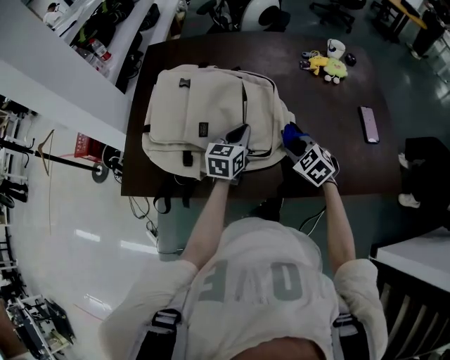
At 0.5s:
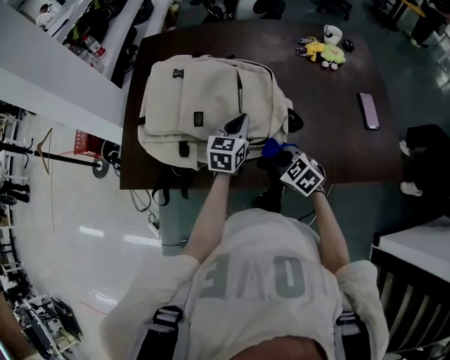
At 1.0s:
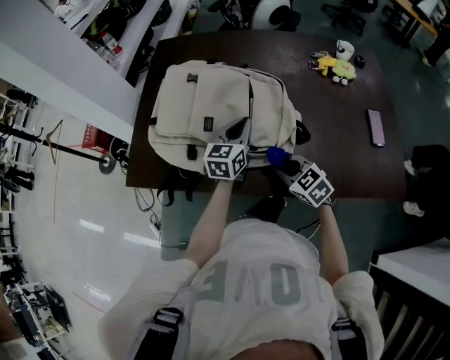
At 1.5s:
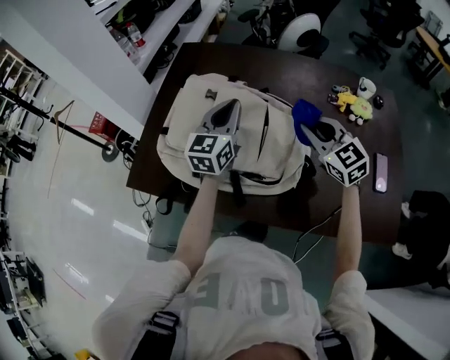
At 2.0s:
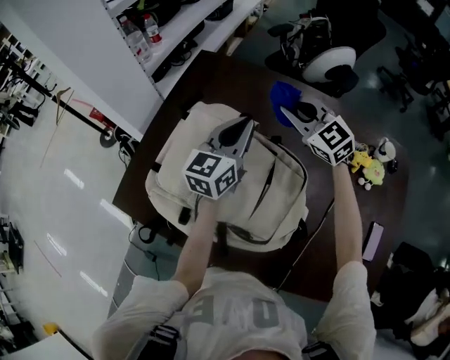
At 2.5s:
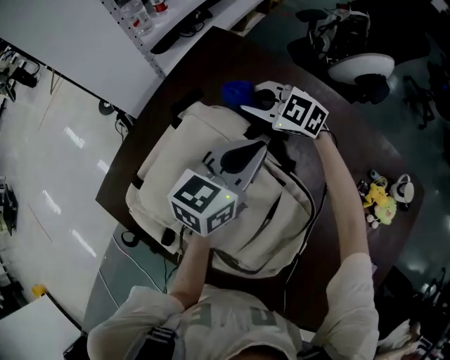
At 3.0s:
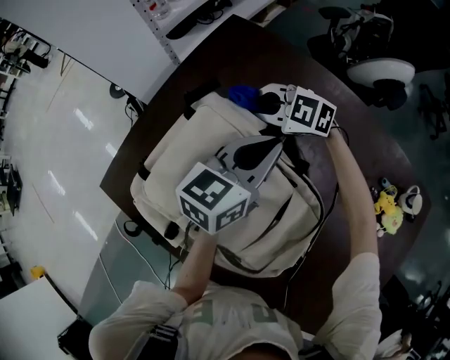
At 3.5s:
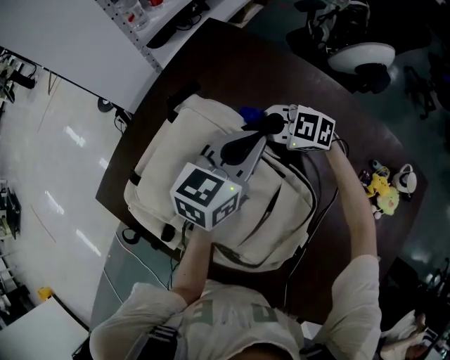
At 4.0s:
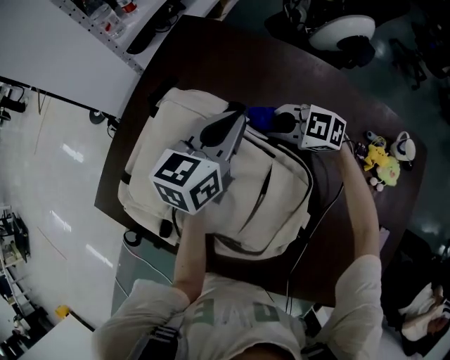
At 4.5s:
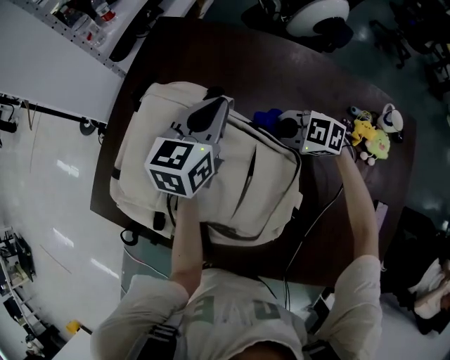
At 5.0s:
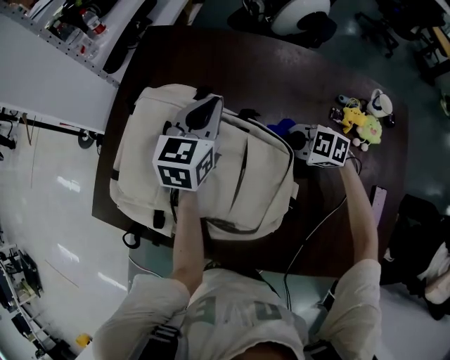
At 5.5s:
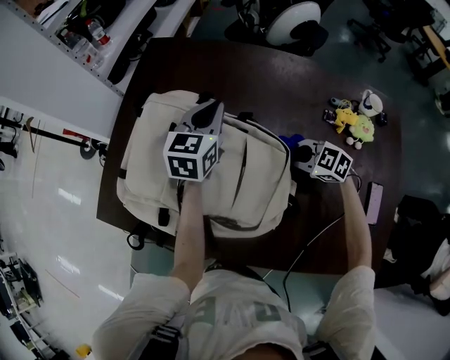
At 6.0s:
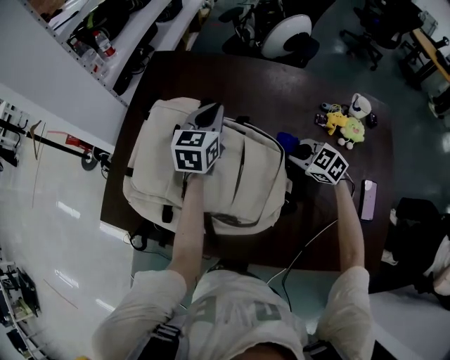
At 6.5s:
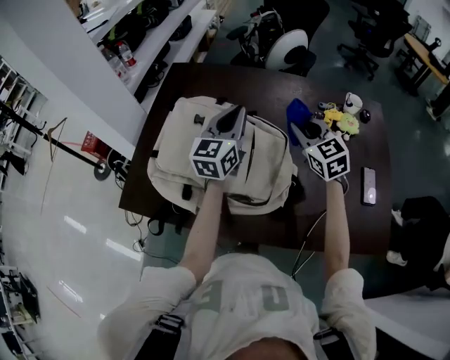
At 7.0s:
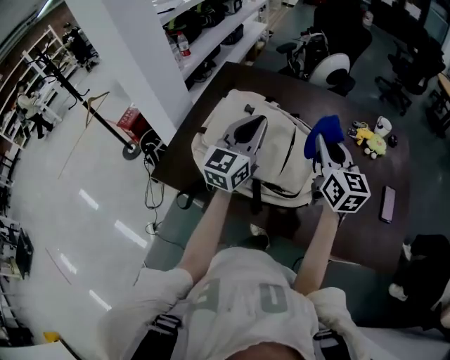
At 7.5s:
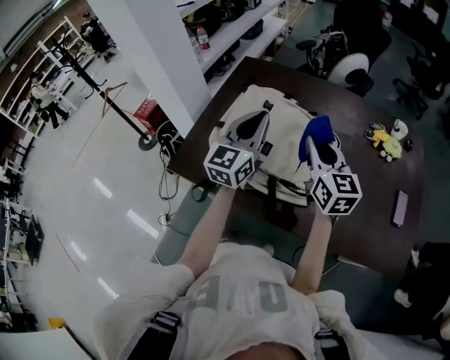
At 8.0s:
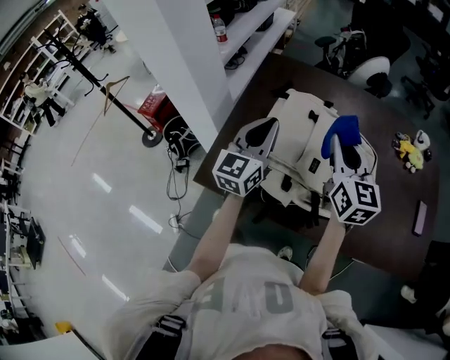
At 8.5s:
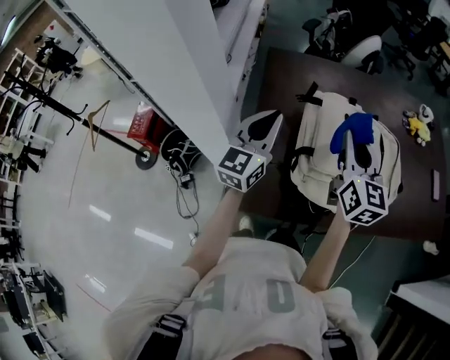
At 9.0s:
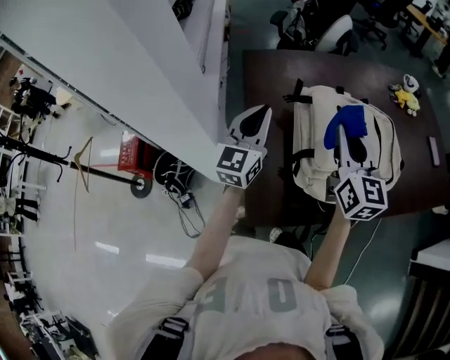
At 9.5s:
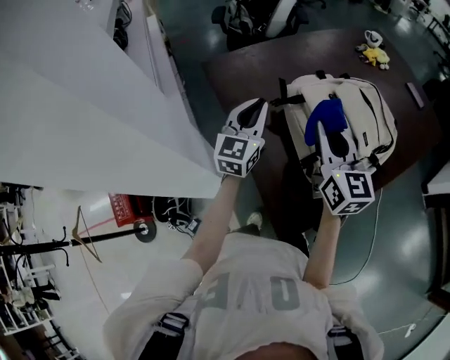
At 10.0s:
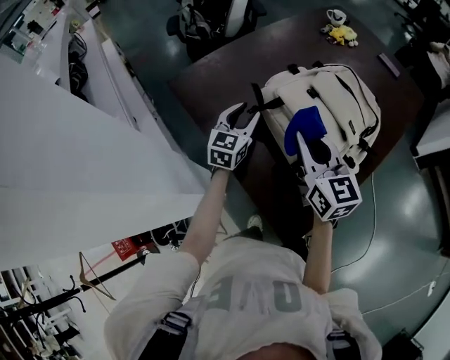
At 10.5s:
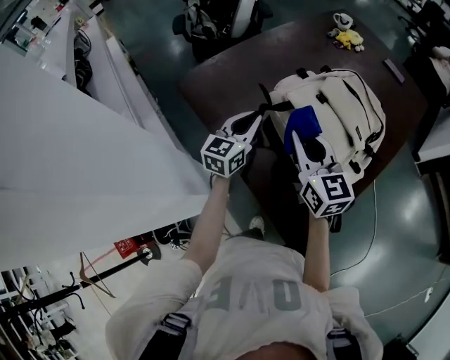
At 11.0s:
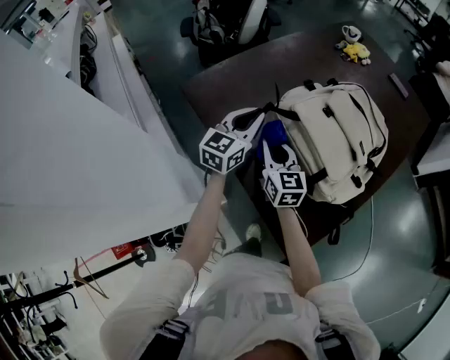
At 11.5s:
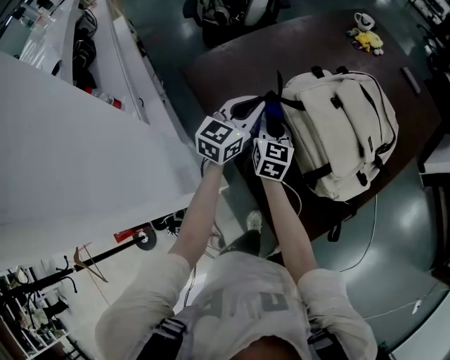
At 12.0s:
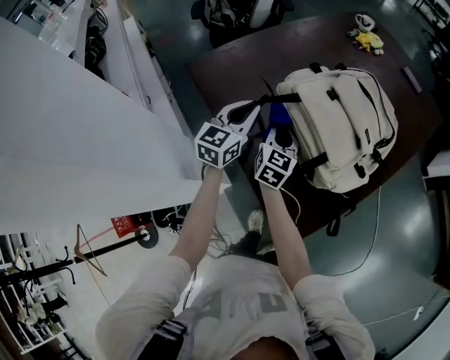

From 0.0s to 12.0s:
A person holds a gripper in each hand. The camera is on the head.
From 0.0s to 2.0s: The right gripper shifts roughly 40 cm forward and upward, and angles its fingers upward, by some 30 degrees; the left gripper moves forward and upward, some 25 cm, and changes its angle by some 30 degrees.
From 2.0s to 4.0s: The right gripper goes roughly 20 cm downward, and swivels some 40 degrees. The left gripper is displaced downward by approximately 5 cm.
From 4.0s to 6.0s: The right gripper moves backward and to the right, about 20 cm, and swivels some 40 degrees.
From 6.0s to 8.0s: The right gripper moves upward and to the left, about 35 cm, and tips its fingers upward by some 40 degrees, while the left gripper travels to the left, backward and upward by some 30 cm, and rotates approximately 20 degrees.
From 8.0s to 10.0s: The right gripper changes place by roughly 25 cm, and turns by some 40 degrees. The left gripper ends up roughly 30 cm from where it was, swivels roughly 60 degrees, and opens up.
From 10.0s to 12.0s: The left gripper closes. Meanwhile the right gripper heads downward and to the left, covering about 15 cm, and changes its angle by roughly 30 degrees.

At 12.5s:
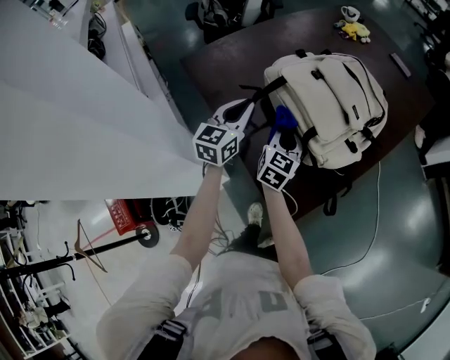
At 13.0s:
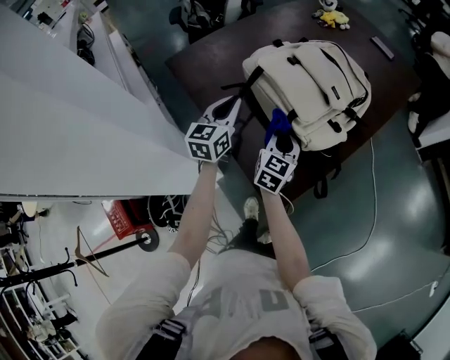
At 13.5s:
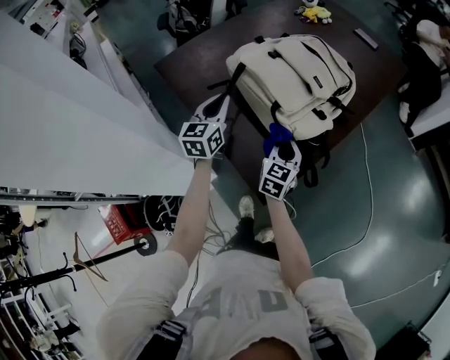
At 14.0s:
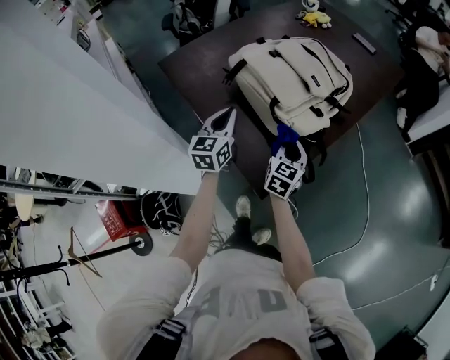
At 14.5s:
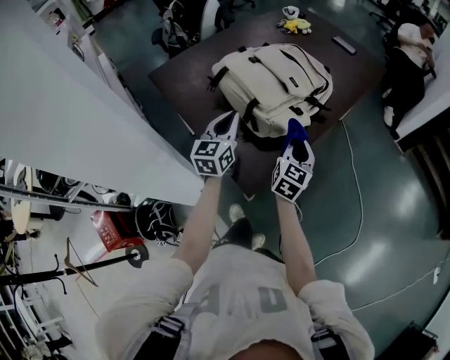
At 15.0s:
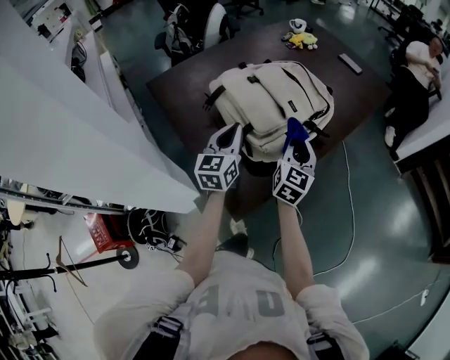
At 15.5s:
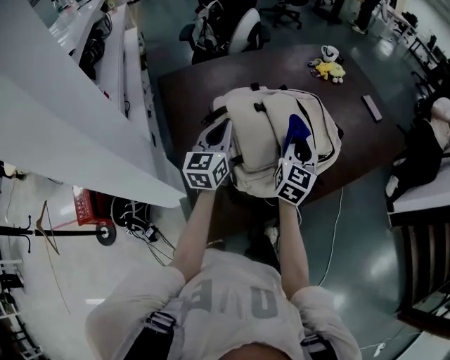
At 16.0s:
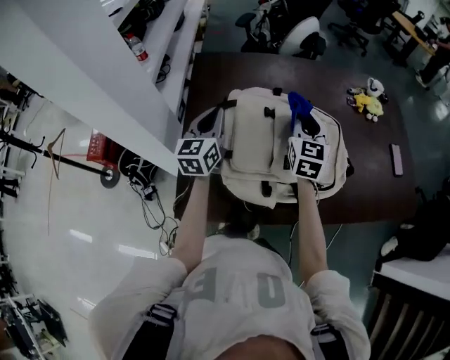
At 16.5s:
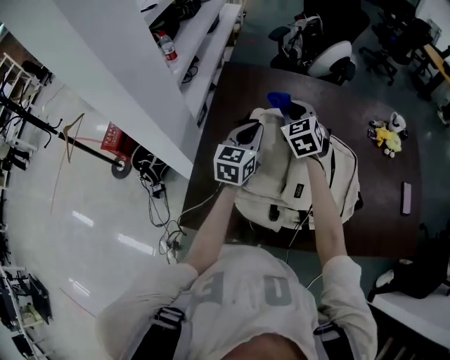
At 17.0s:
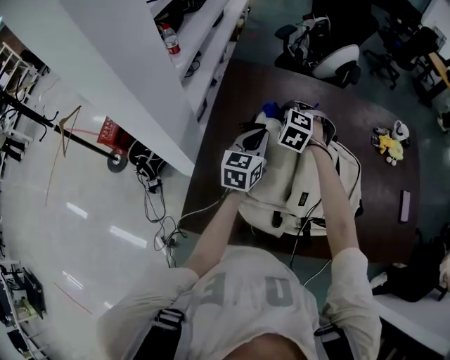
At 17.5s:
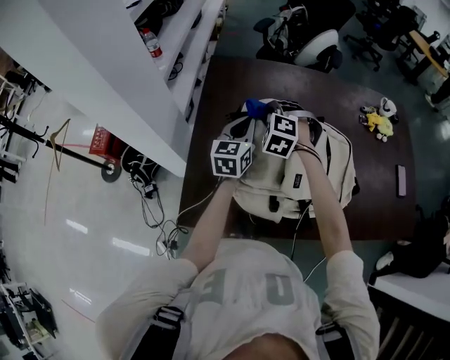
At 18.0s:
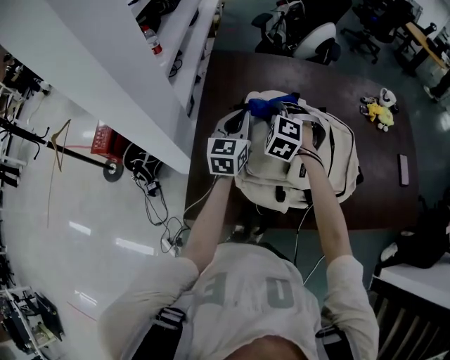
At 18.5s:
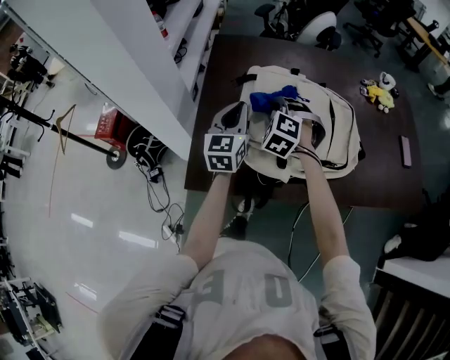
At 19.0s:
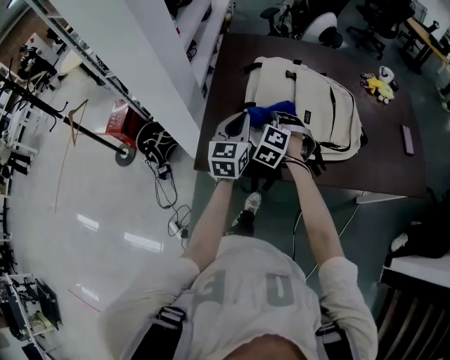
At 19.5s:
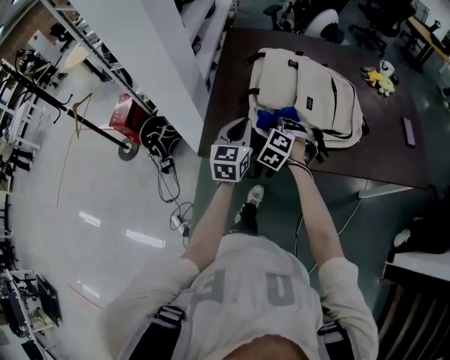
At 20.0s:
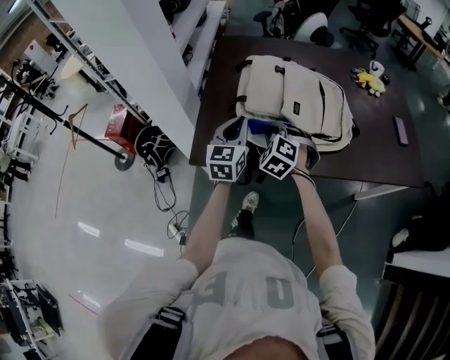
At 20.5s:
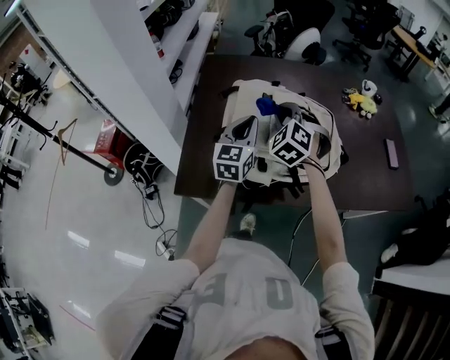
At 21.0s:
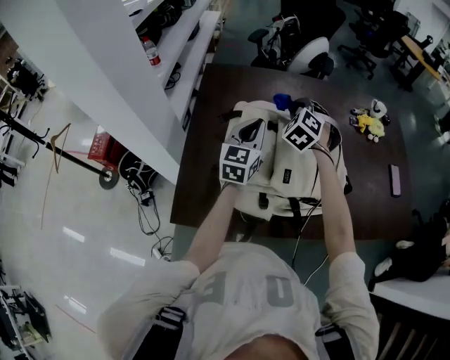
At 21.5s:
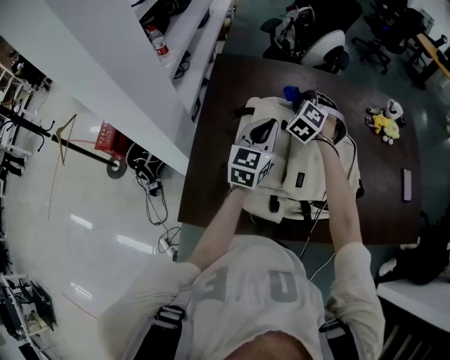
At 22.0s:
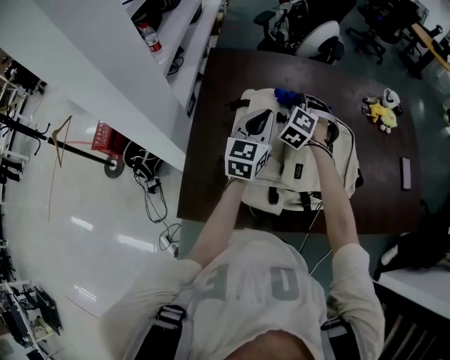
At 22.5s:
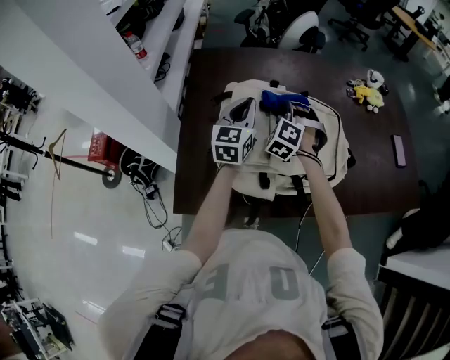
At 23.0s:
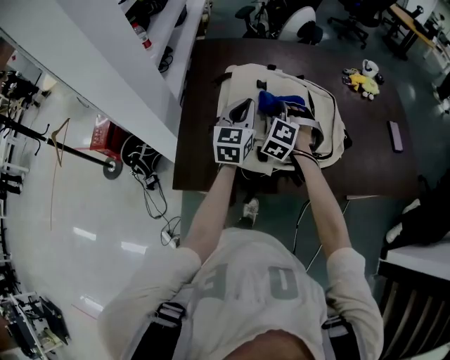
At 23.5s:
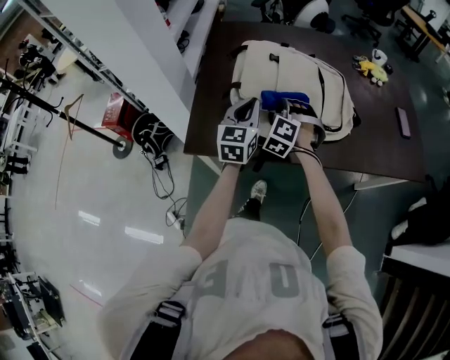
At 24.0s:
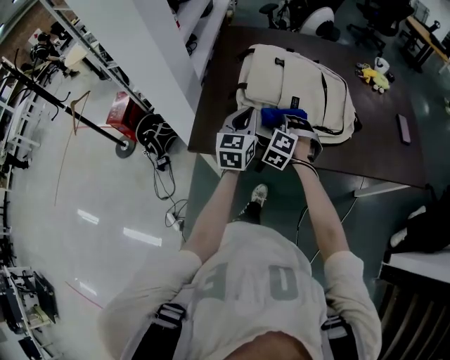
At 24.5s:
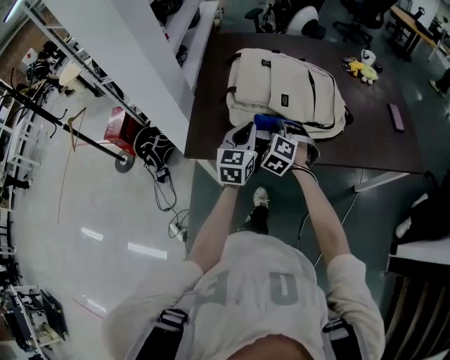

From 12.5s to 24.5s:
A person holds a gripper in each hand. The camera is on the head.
From 12.5s to 14.5s: The left gripper moves to the right and backward, roughly 15 cm, while the right gripper is displaced to the right by roughly 25 cm.
From 14.5s to 16.5s: The right gripper moves roughly 40 cm, and rotates approximately 90 degrees. Meanwhile the left gripper ends up roughly 20 cm from where it was, and turns by about 40 degrees.
From 16.5s to 18.5s: The left gripper moves backward, some 10 cm, while the right gripper travels backward by roughly 15 cm, and turns by about 40 degrees.
From 18.5s to 20.5s: The left gripper moves to the right, roughly 10 cm, and reaches approximately 15 cm backward, then returns. Meanwhile the right gripper shifts about 10 cm to the right and upward, and moves approximately 15 cm backward and comes back.
From 20.5s to 22.5s: The left gripper is displaced forward by roughly 10 cm; the right gripper travels forward and downward by approximately 15 cm.
From 22.5s to 24.5s: Both grippers travel together backward, about 25 cm.

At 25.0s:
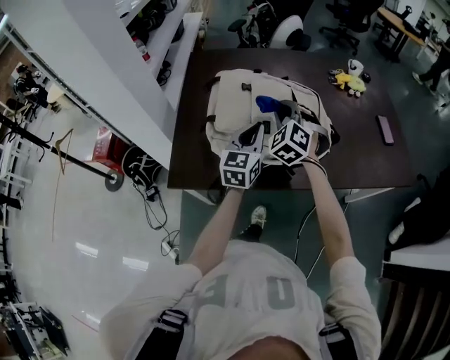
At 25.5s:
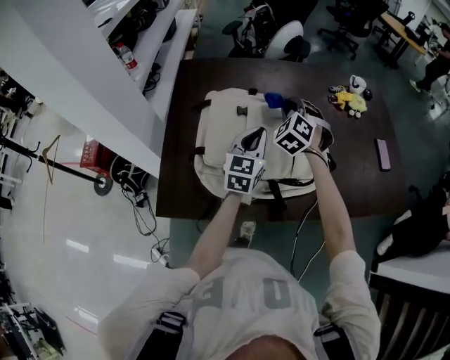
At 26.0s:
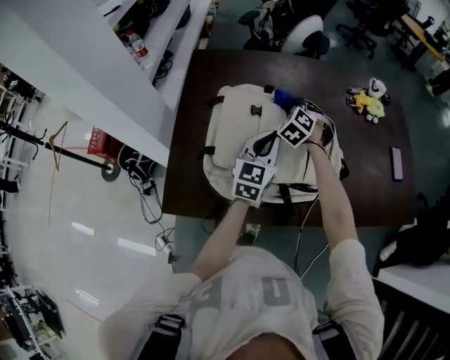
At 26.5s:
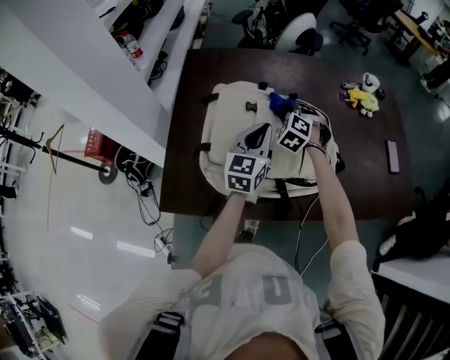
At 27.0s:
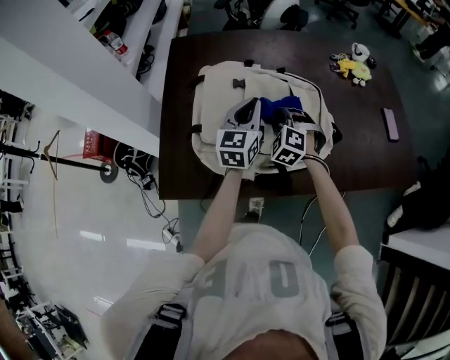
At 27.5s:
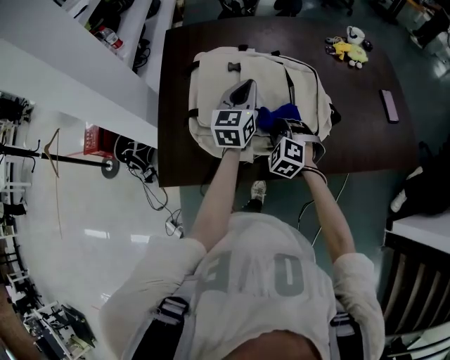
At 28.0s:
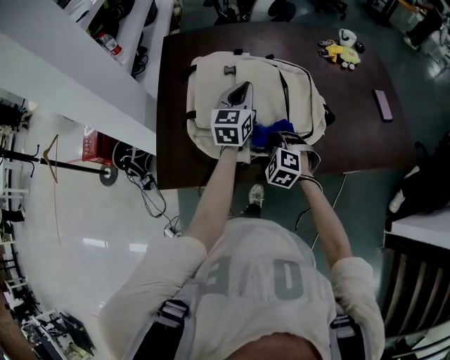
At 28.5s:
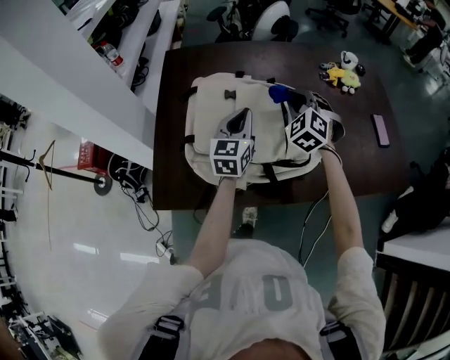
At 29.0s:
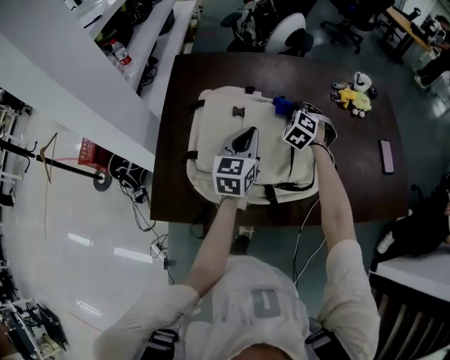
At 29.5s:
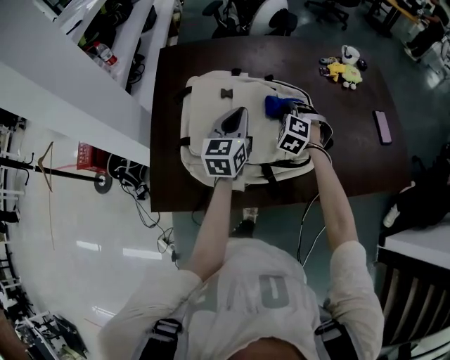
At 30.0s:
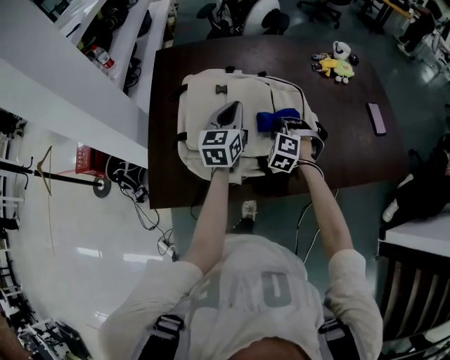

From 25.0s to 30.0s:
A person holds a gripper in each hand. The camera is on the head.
From 25.0s to 27.5s: The right gripper travels downward by approximately 15 cm, goes forward and returns, approximately 20 cm each way, and swivels some 20 degrees. The left gripper travels forward by roughly 10 cm.
From 27.5s to 30.0s: The right gripper swings forward and backward, roughly 30 cm each way, with 2 reversals.
